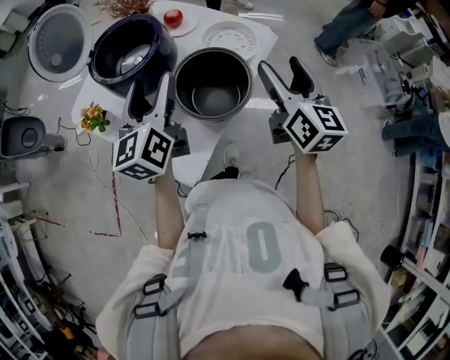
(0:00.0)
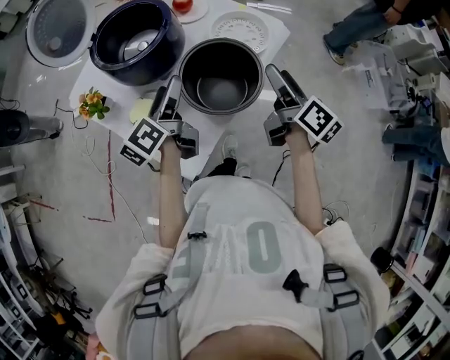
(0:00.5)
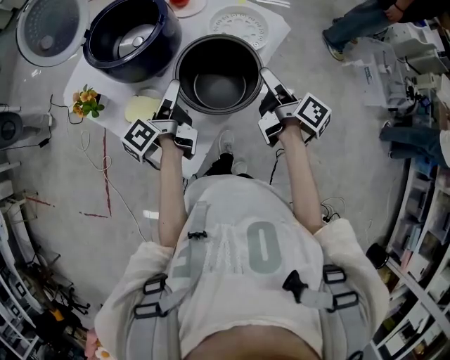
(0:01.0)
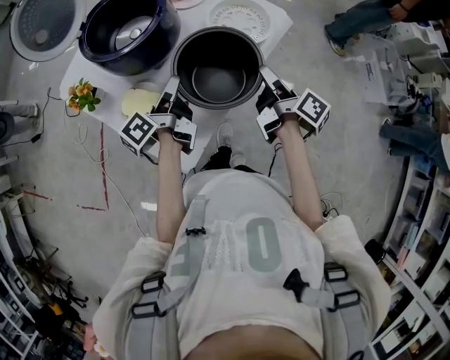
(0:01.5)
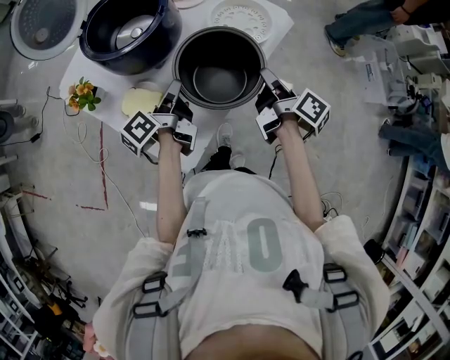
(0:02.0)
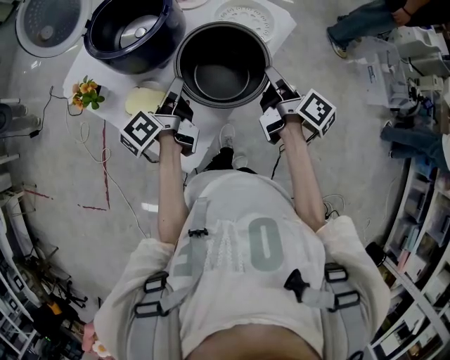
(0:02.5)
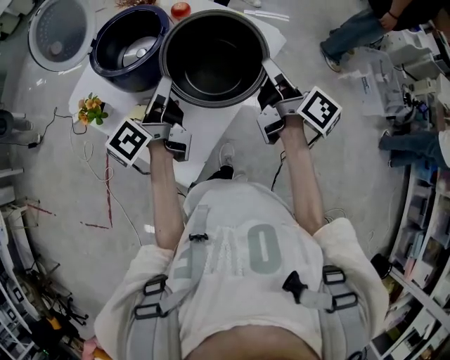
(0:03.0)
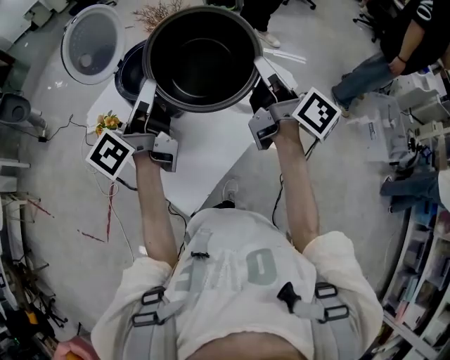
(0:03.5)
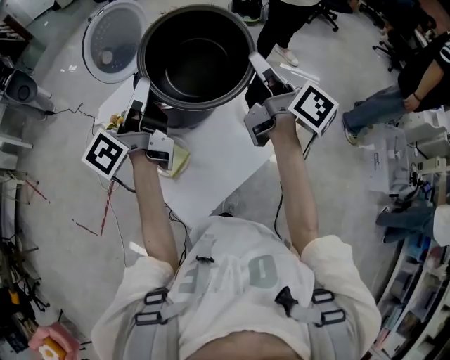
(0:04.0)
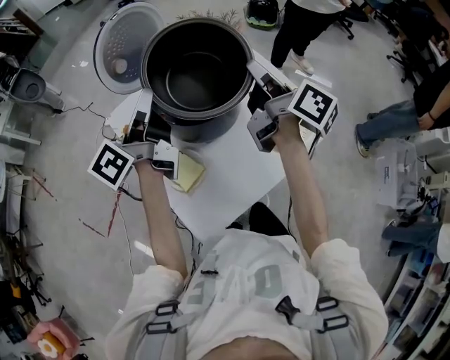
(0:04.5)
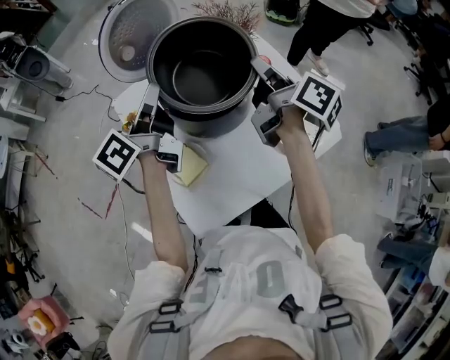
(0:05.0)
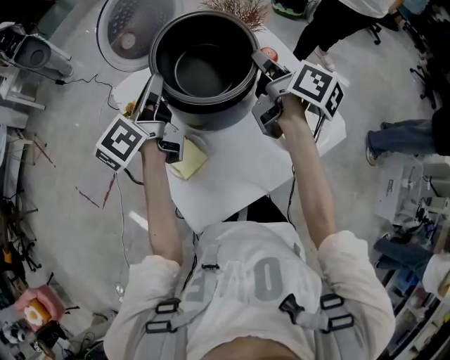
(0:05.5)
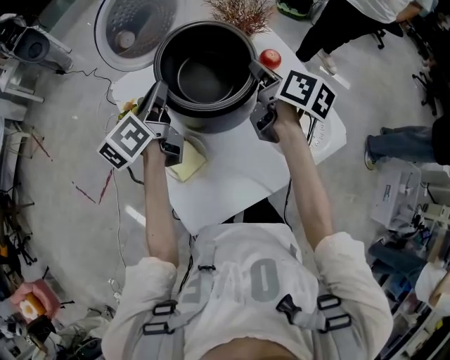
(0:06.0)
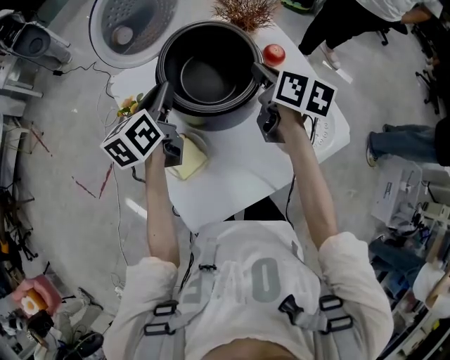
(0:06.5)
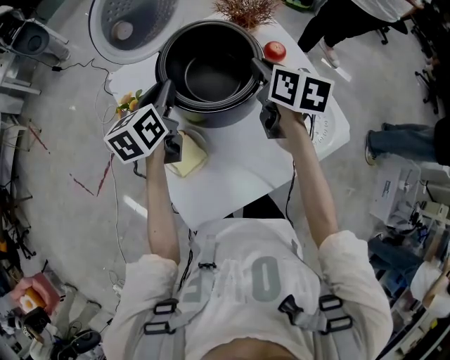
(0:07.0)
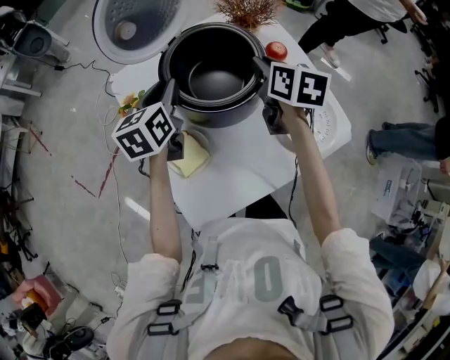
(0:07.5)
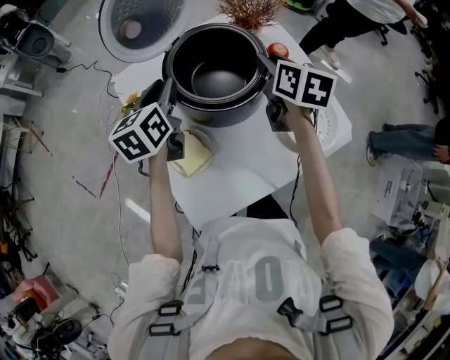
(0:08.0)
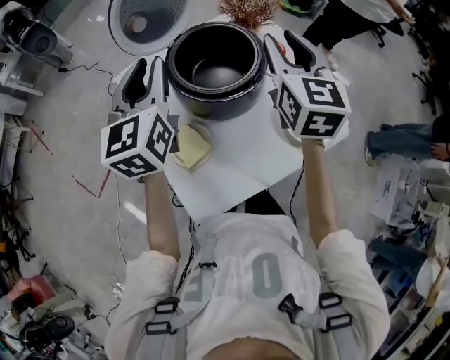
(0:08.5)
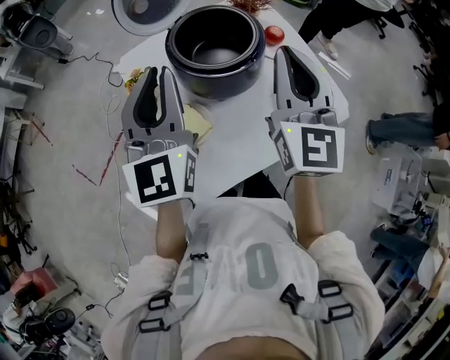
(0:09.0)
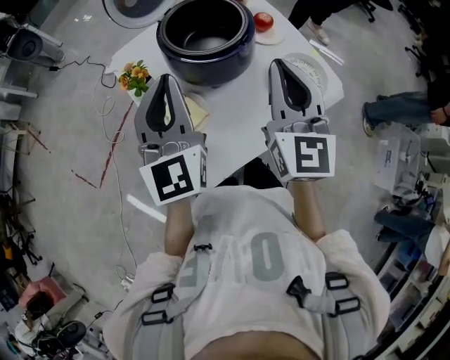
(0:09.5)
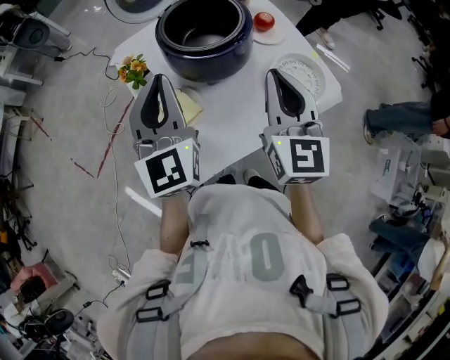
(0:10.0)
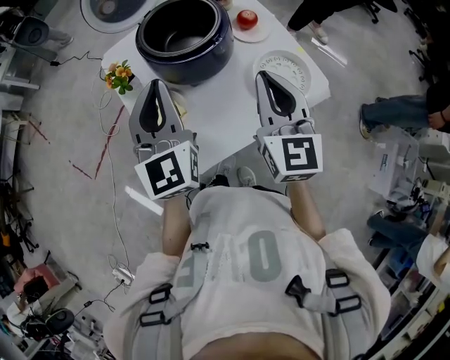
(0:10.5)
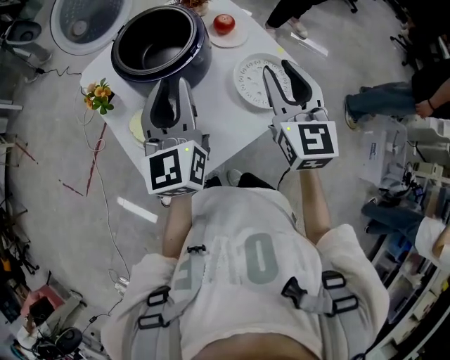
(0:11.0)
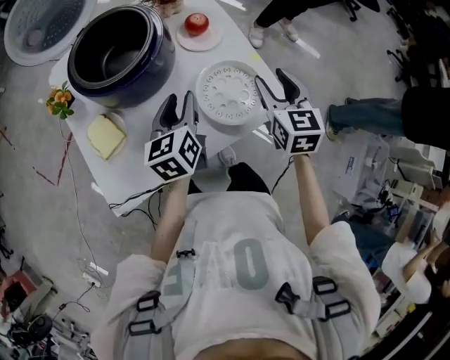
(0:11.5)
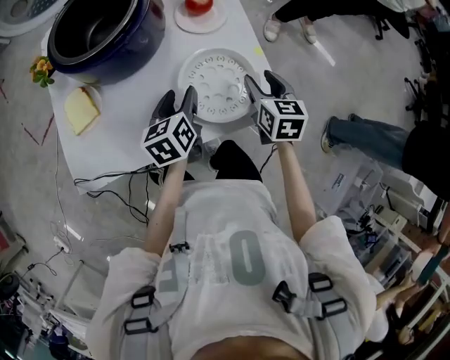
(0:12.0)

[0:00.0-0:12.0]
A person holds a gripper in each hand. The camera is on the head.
0:00.0 to 0:02.0: Both grippers travel together downward, roughly 20 cm. The right gripper rolls clockwise, seen from behind, by roughly 60 degrees, and closes up. The left gripper rotates around the line of its fingers by roughly 60 degrees, counterclockwise from behind, and closes.
0:02.0 to 0:04.0: The right gripper heads upward, forward and to the left, covering approximately 30 cm, and turns by about 30 degrees, while the left gripper goes about 25 cm upward, and changes its angle by approximately 40 degrees.
0:04.0 to 0:06.0: The left gripper moves downward, forward and to the left, approximately 15 cm, and turns by about 30 degrees. Meanwhile the right gripper travels forward, downward and to the left by some 20 cm, and swivels approximately 30 degrees.
0:06.0 to 0:08.0: The left gripper turns by approximately 20 degrees. Meanwhile the right gripper changes its angle by about 30 degrees.
0:08.0 to 0:10.0: The right gripper is displaced backward by about 25 cm, changes its angle by some 40 degrees, and closes; the left gripper goes about 25 cm backward and upward, and turns by approximately 40 degrees.
0:10.0 to 0:12.0: The right gripper heads to the right, downward and forward, covering some 40 cm, angles its fingers downward, by roughly 30 degrees, and opens its fingers. Meanwhile the left gripper travels downward and to the right by some 40 cm, tips its fingers downward by approximately 40 degrees, and opens its fingers.

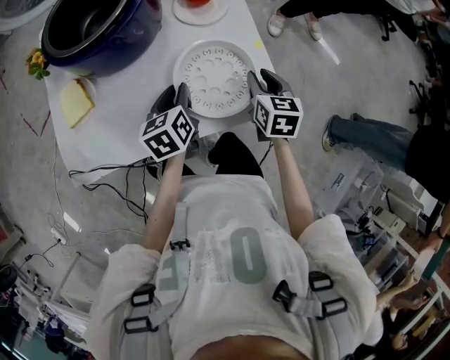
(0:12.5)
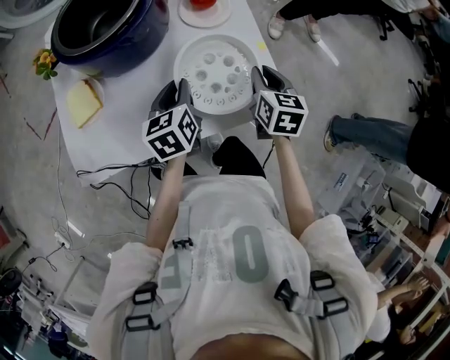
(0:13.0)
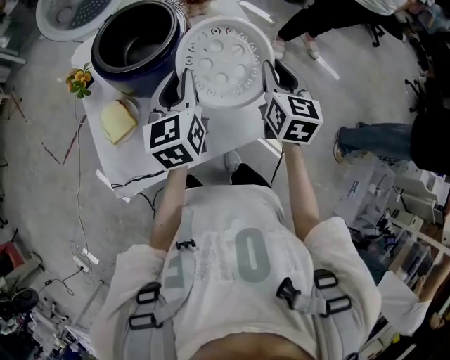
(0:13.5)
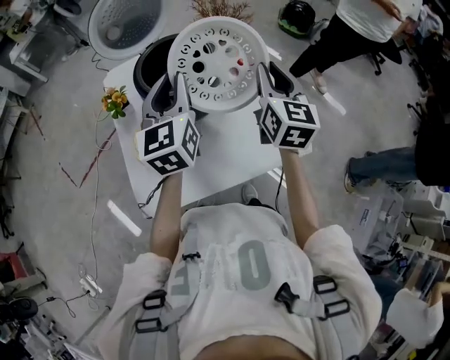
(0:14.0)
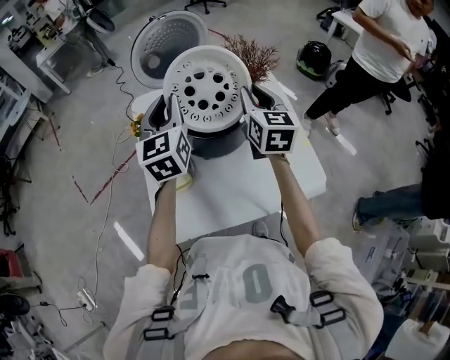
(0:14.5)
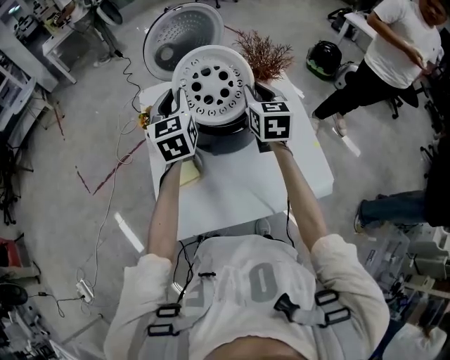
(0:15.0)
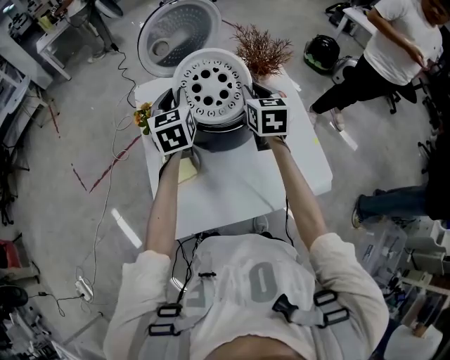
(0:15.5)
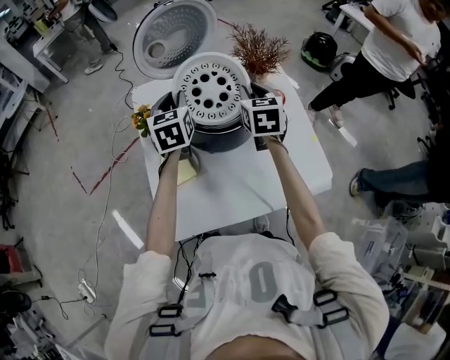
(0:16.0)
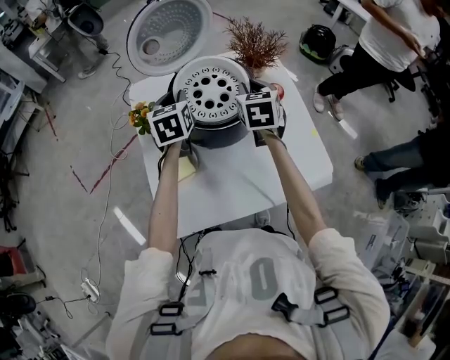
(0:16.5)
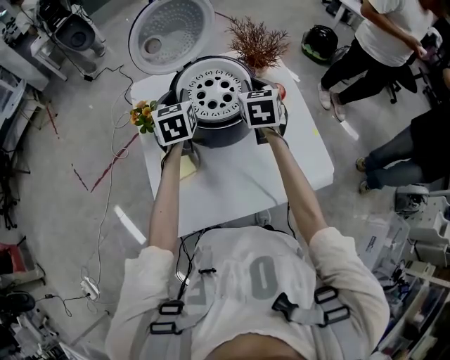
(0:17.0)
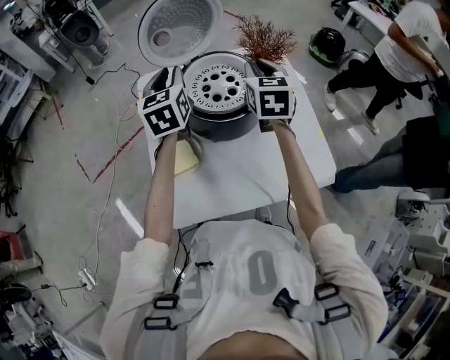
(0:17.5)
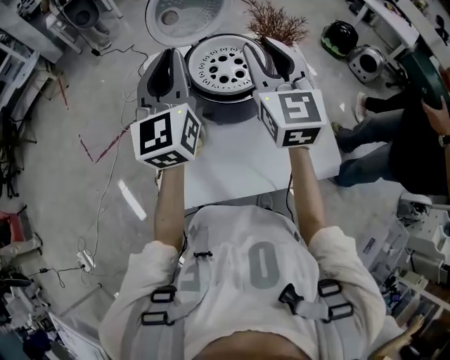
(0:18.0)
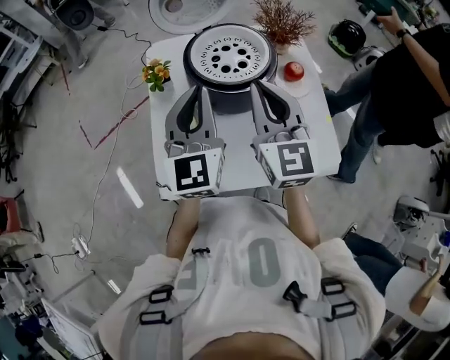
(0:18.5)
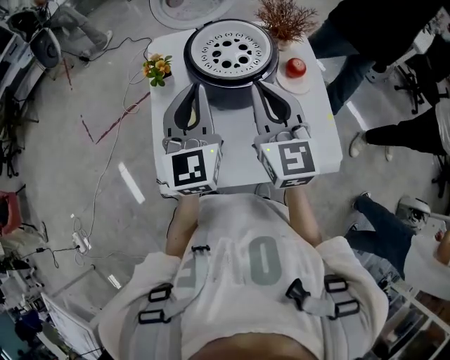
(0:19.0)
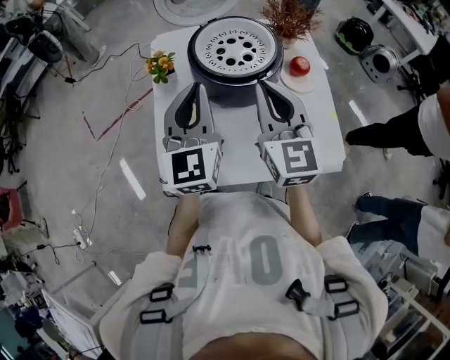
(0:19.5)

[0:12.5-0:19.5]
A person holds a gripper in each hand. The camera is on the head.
0:12.5 to 0:14.5: The grippers both shift upward and to the left by some 40 cm. The left gripper points its fingers roughly 30 degrees further upward; the right gripper turns by some 30 degrees.
0:14.5 to 0:16.0: The grippers both shift downward and forward by some 10 cm.
0:16.0 to 0:17.5: Both grippers move upward, roughly 5 cm.
0:17.5 to 0:19.5: The grippers both shift backward by about 15 cm. The right gripper rotates about 20 degrees.

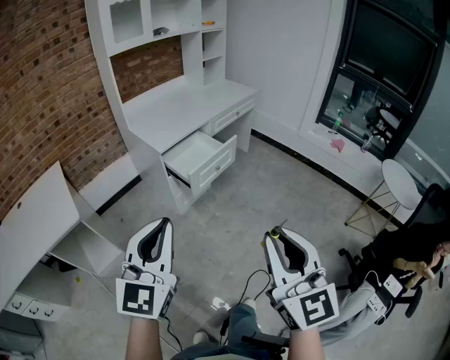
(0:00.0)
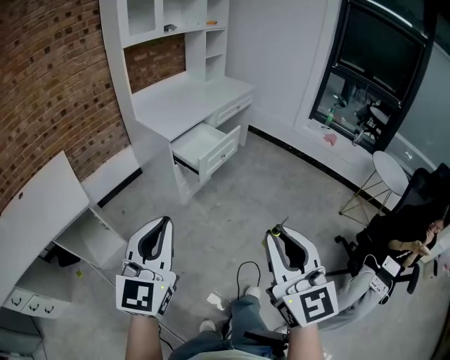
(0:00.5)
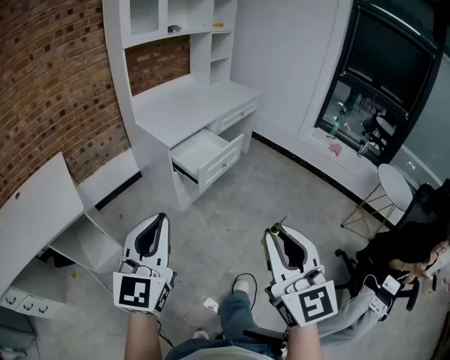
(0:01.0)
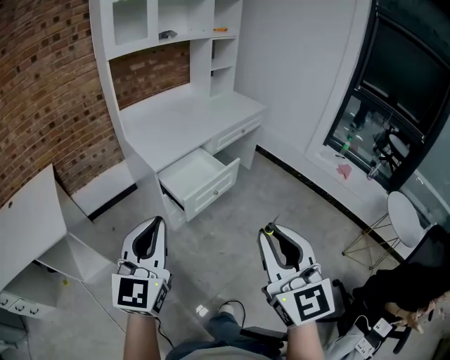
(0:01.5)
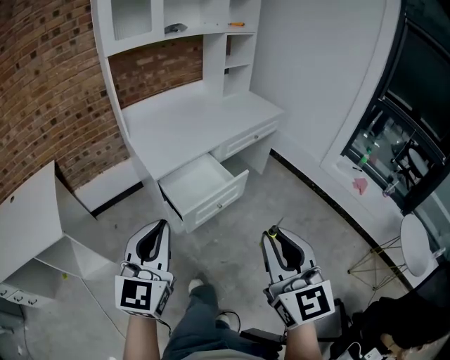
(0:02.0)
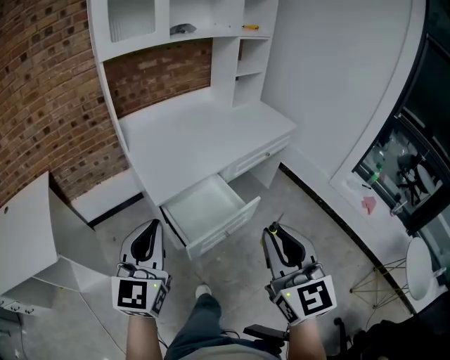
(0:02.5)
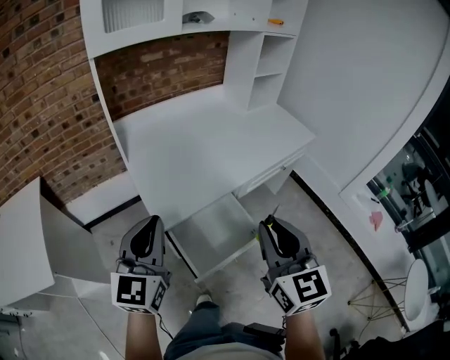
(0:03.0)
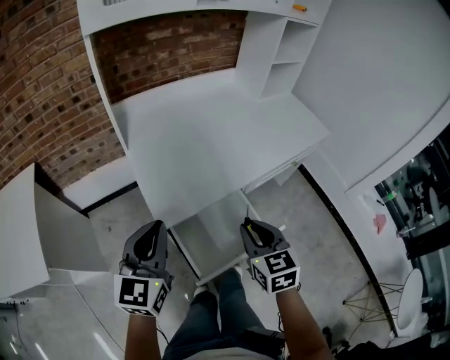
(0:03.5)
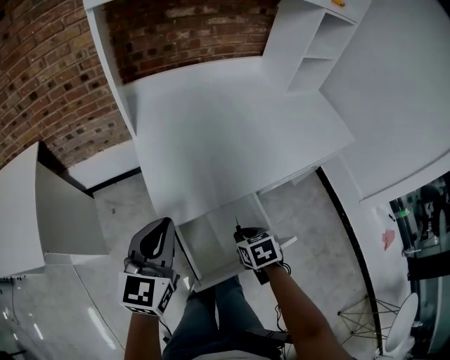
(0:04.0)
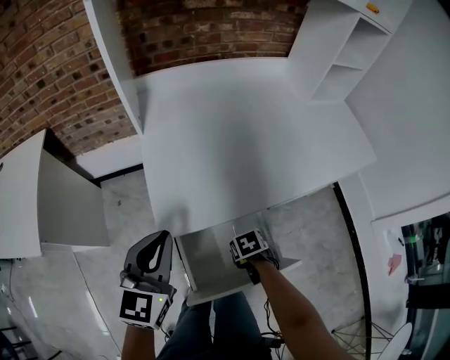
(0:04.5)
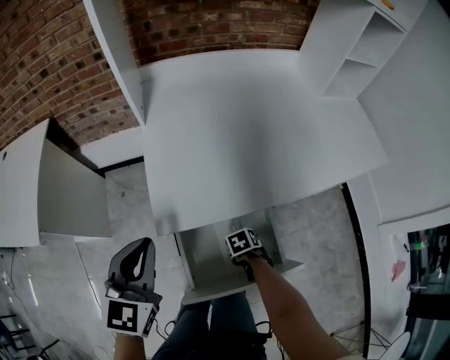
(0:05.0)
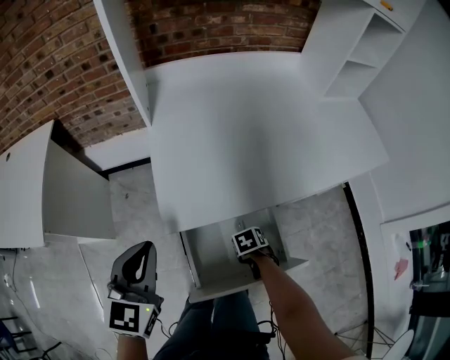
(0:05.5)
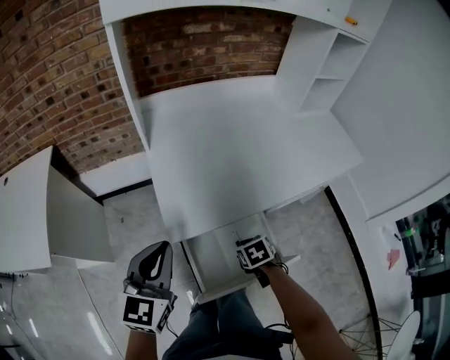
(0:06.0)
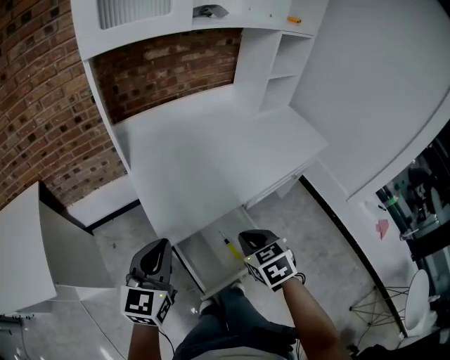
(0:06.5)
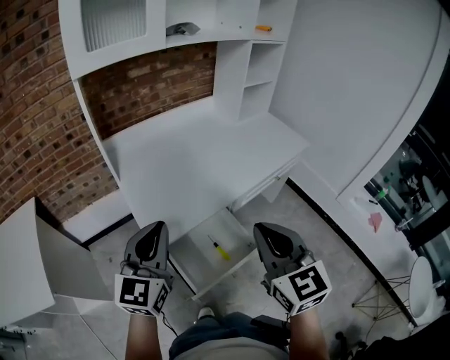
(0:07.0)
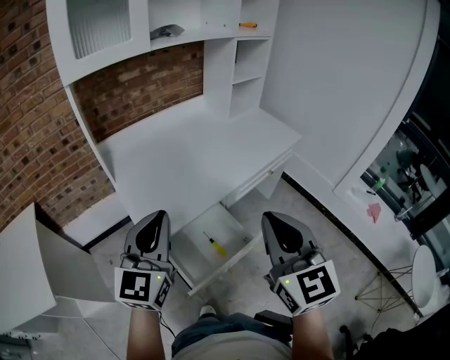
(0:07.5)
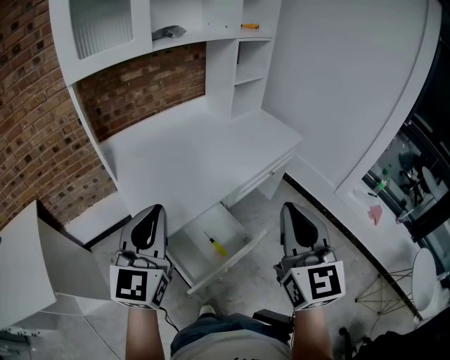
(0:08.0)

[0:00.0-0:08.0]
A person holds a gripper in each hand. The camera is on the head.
0:00.0 to 0:02.0: Both grippers move forward, about 25 cm.
0:02.0 to 0:04.0: Both grippers are carried forward, about 40 cm. The left gripper rotates some 20 degrees; the right gripper moves downward, roughly 35 cm, and angles its fingers downward, by some 60 degrees.
0:04.0 to 0:06.0: The right gripper travels downward and back again, approximately 20 cm each way.
0:06.0 to 0:08.0: The left gripper is displaced upward by roughly 15 cm, and swivels roughly 30 degrees. The right gripper moves upward, some 40 cm, and angles its fingers upward, by approximately 70 degrees.
